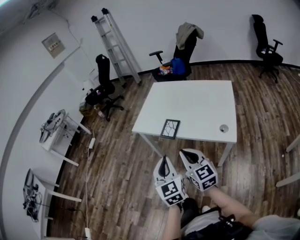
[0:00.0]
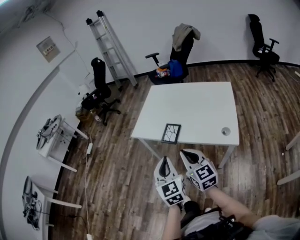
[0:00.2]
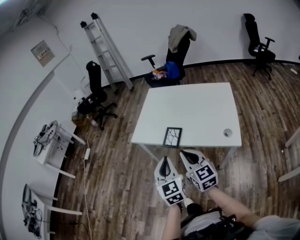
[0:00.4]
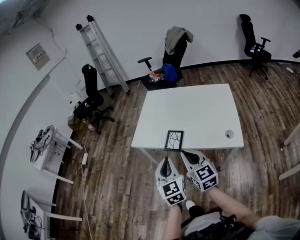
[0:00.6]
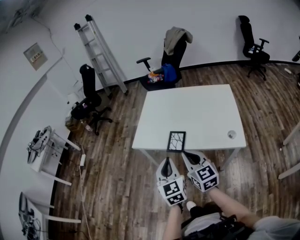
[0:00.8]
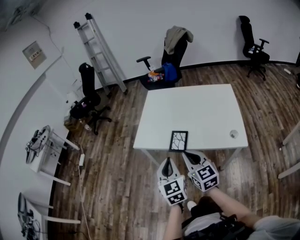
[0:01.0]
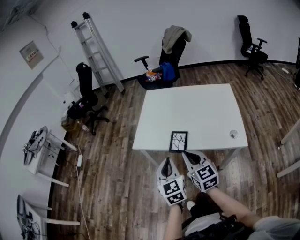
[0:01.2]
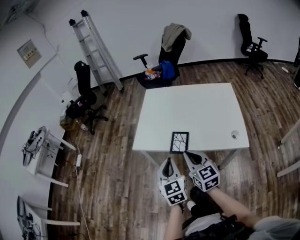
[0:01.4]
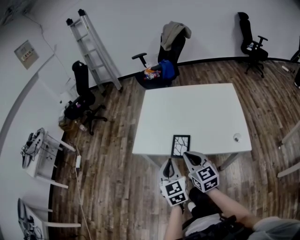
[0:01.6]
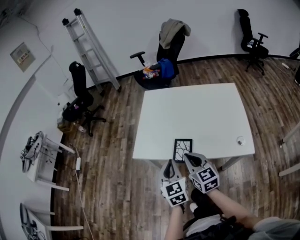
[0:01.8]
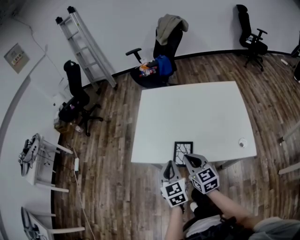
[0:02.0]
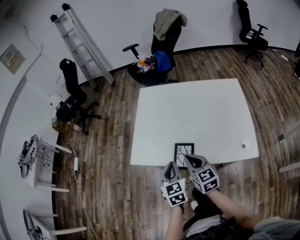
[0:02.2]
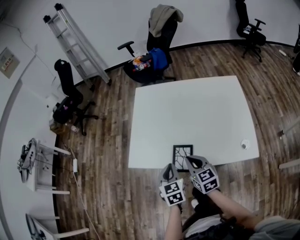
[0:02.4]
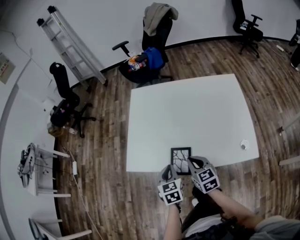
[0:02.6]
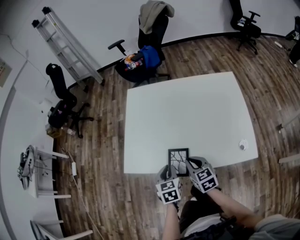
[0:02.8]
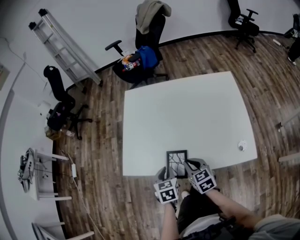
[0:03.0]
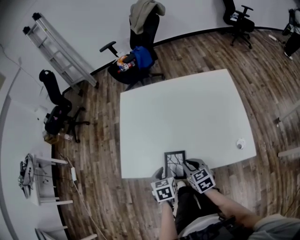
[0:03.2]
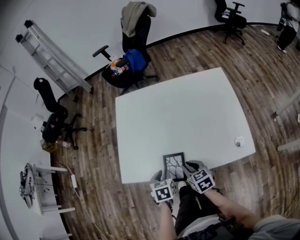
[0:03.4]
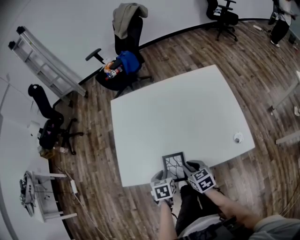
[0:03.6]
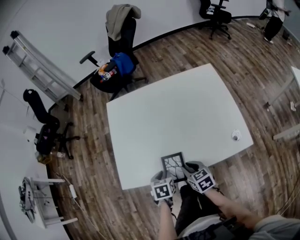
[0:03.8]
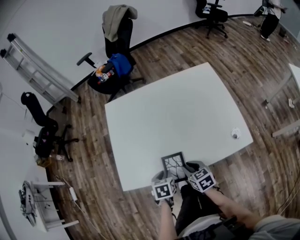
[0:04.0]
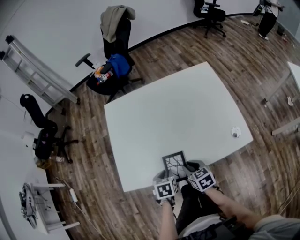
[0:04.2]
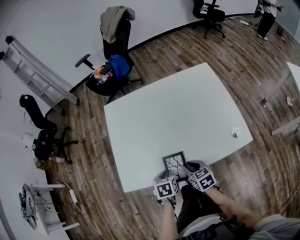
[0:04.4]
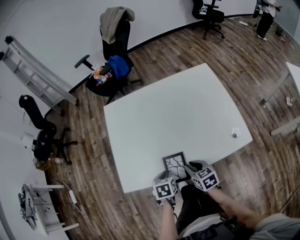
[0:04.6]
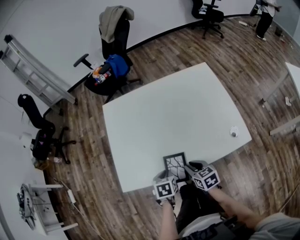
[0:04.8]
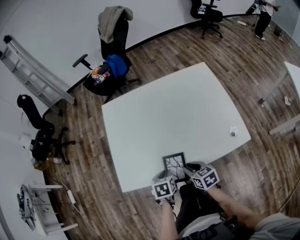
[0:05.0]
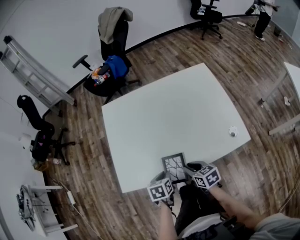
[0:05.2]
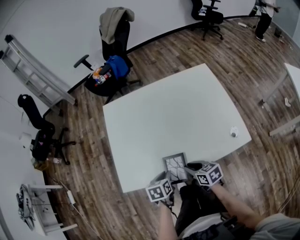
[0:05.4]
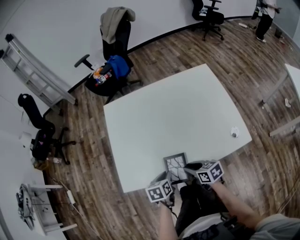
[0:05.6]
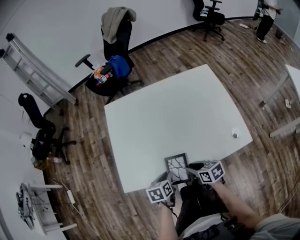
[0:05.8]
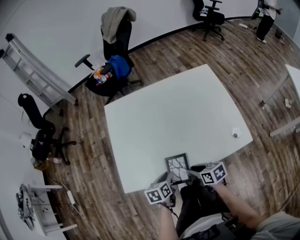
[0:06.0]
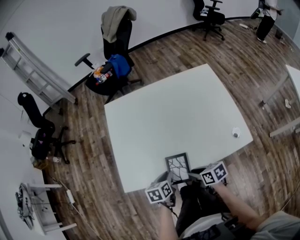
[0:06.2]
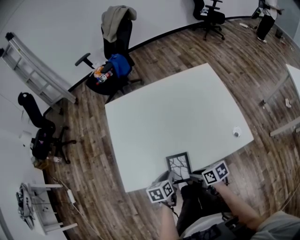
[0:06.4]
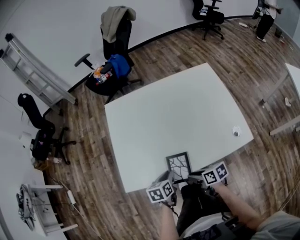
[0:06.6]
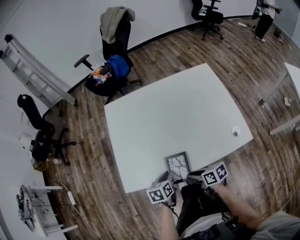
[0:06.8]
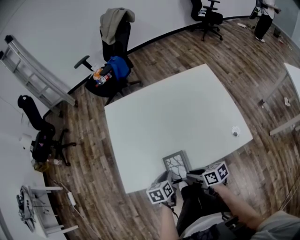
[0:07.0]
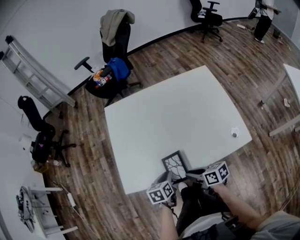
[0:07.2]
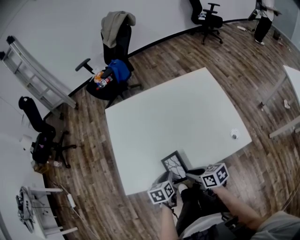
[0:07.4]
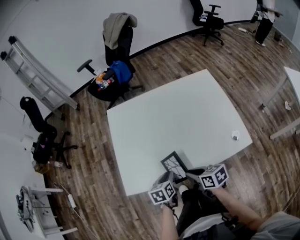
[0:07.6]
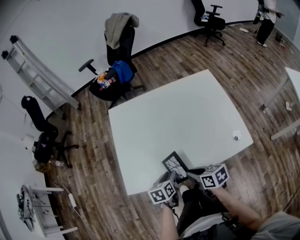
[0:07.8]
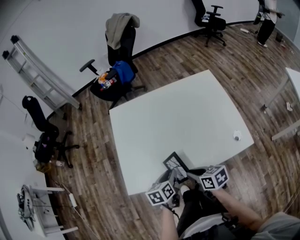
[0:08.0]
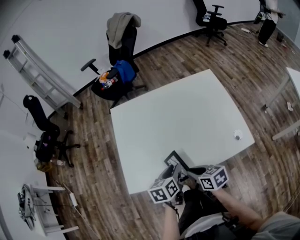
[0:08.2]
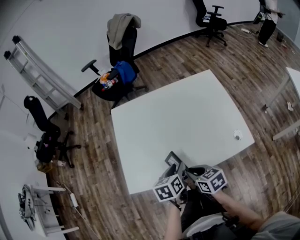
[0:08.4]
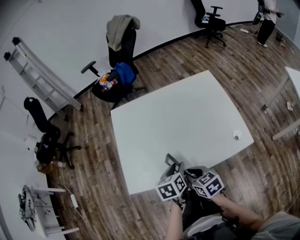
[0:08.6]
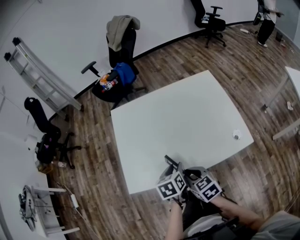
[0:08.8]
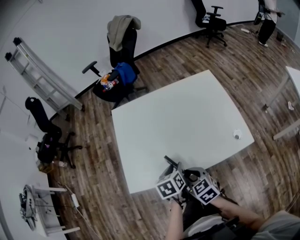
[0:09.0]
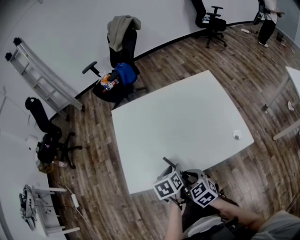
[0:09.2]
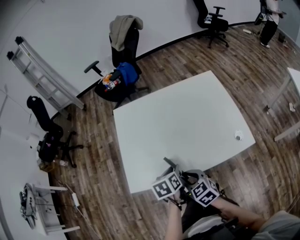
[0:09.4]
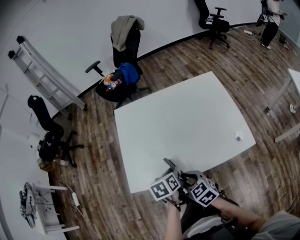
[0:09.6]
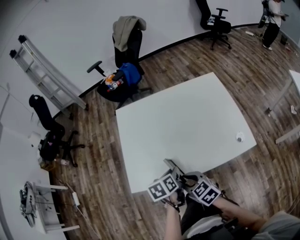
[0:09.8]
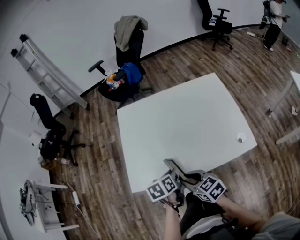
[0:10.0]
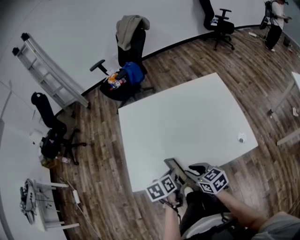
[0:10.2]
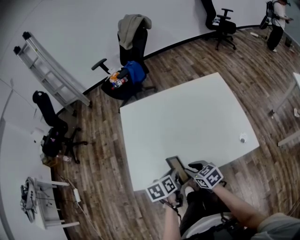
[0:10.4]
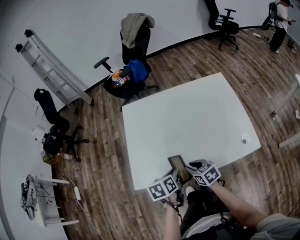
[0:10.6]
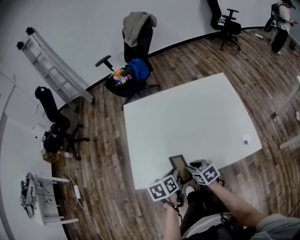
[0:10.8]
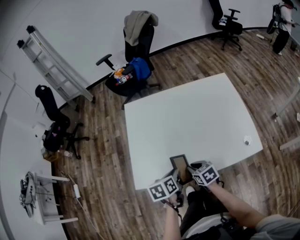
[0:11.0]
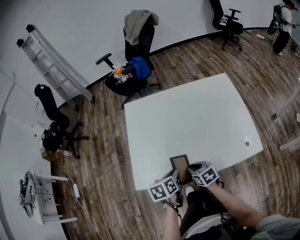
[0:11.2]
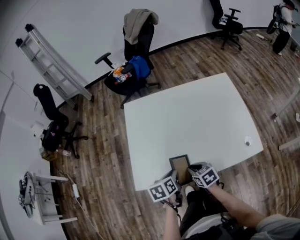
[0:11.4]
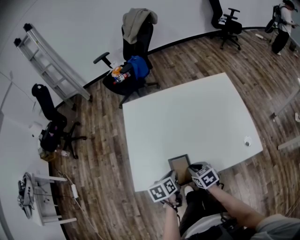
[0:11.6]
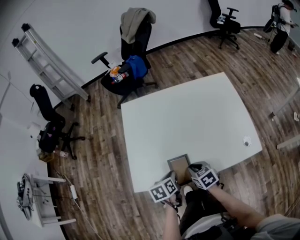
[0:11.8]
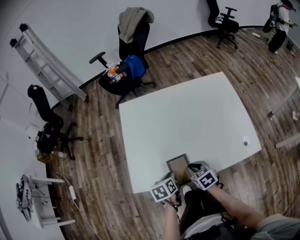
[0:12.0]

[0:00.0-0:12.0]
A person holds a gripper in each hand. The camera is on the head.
0:00.0 to 0:01.6: Both grippers move forward, some 20 cm.
0:01.6 to 0:03.0: Both grippers travel together downward and forward, about 20 cm. The right gripper rotates about 20 degrees; the left gripper angles its fingers downward, by about 30 degrees.
0:03.0 to 0:04.4: Both grippers move downward, approximately 5 cm. The left gripper turns by some 20 degrees.
0:04.4 to 0:06.0: The left gripper swivels approximately 20 degrees; the right gripper rotates approximately 20 degrees.
0:06.0 to 0:07.6: The right gripper heads upward, covering some 5 cm.
0:07.6 to 0:09.0: The left gripper is displaced upward by about 10 cm; the right gripper shifts by some 5 cm, and turns by roughly 30 degrees.
0:09.0 to 0:10.4: The right gripper changes place by approximately 5 cm.
0:10.4 to 0:12.0: The grippers both shift downward by approximately 5 cm.

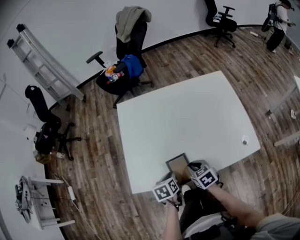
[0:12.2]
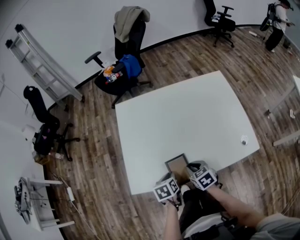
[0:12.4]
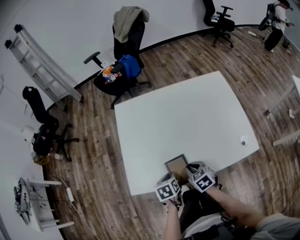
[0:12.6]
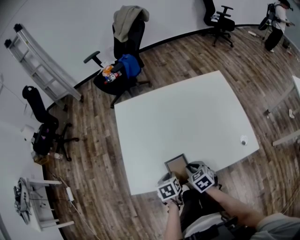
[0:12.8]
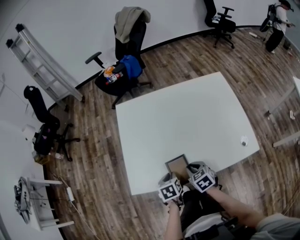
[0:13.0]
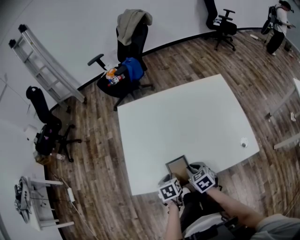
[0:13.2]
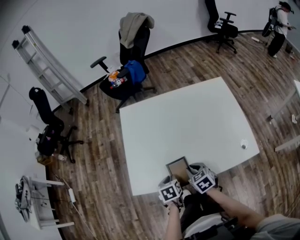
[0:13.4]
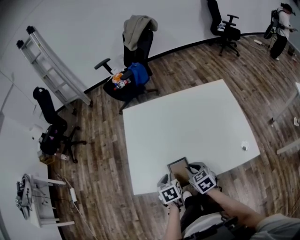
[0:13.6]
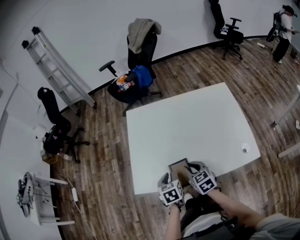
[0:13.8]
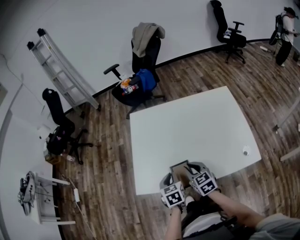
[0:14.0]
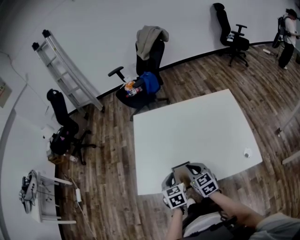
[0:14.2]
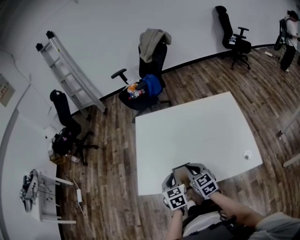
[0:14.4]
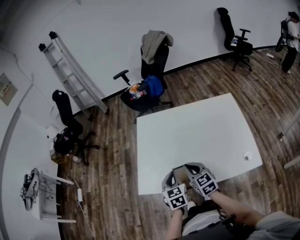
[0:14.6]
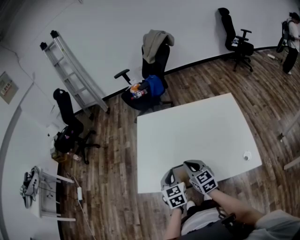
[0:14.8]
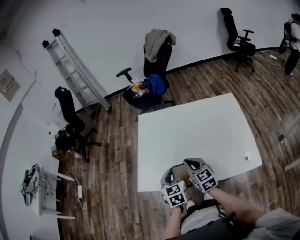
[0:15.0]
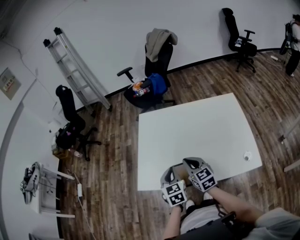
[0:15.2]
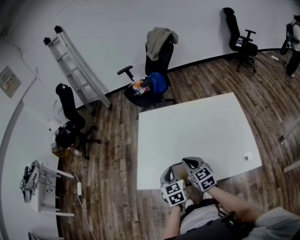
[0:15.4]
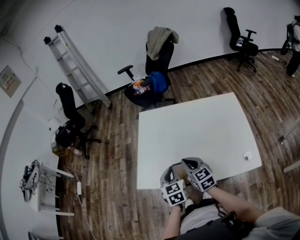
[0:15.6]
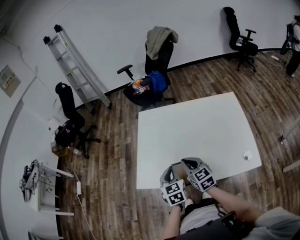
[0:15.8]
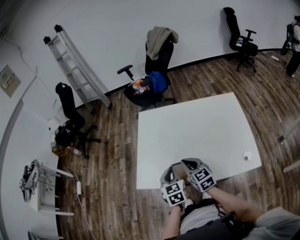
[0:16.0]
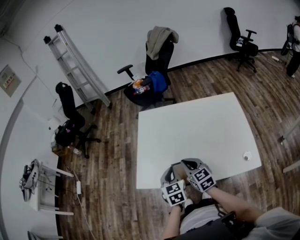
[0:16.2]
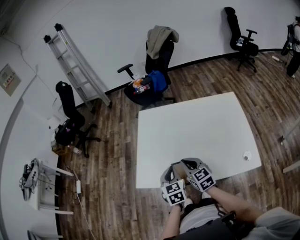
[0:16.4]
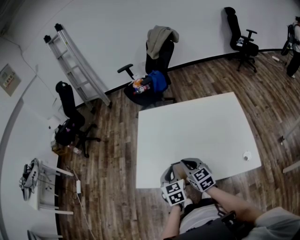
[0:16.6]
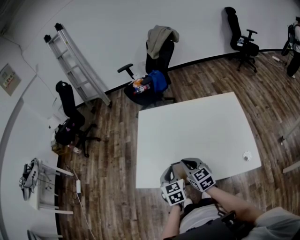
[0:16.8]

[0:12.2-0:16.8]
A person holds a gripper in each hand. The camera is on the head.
0:12.2 to 0:13.8: Both grippers move upward, about 5 cm.
0:13.8 to 0:15.2: The two grippers go some 10 cm upward. The left gripper turns by about 20 degrees.
0:15.2 to 0:16.8: The grippers make only small movements.

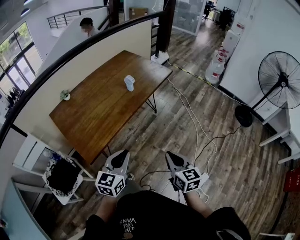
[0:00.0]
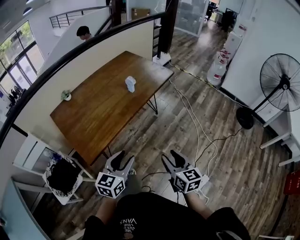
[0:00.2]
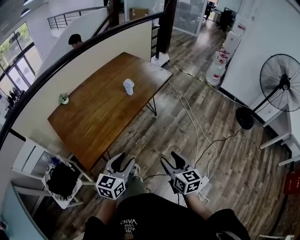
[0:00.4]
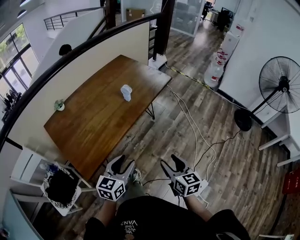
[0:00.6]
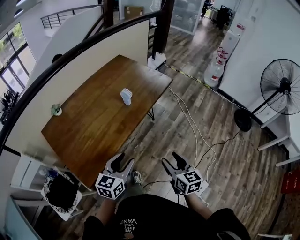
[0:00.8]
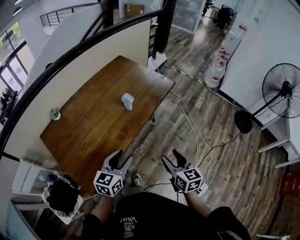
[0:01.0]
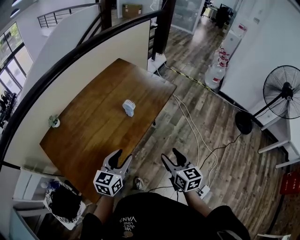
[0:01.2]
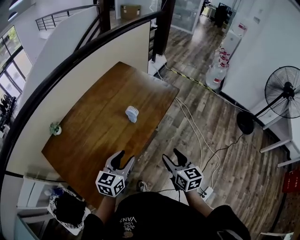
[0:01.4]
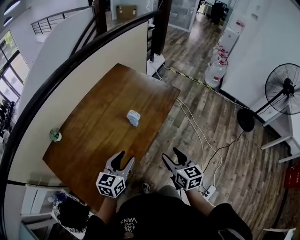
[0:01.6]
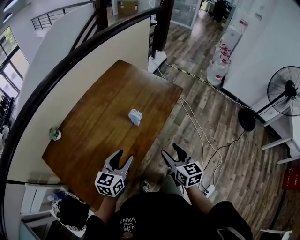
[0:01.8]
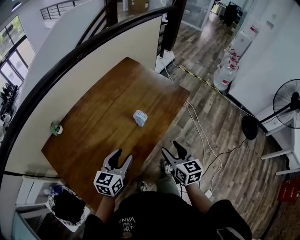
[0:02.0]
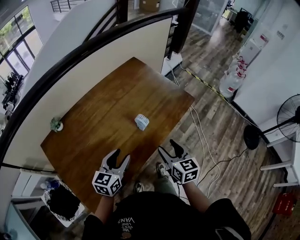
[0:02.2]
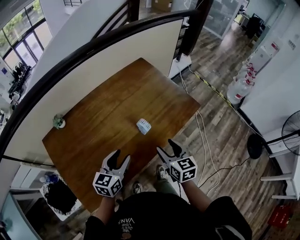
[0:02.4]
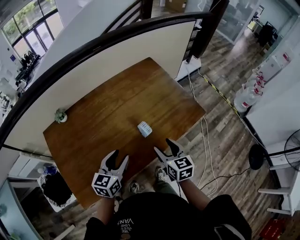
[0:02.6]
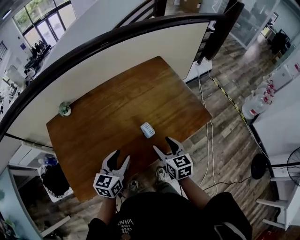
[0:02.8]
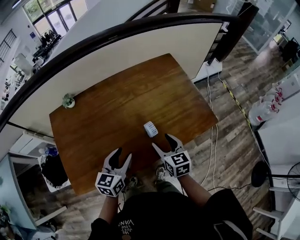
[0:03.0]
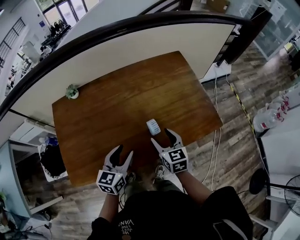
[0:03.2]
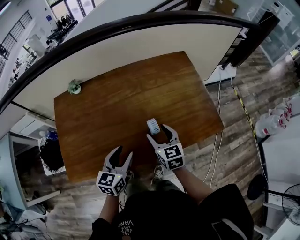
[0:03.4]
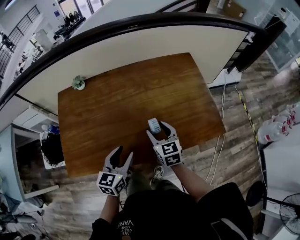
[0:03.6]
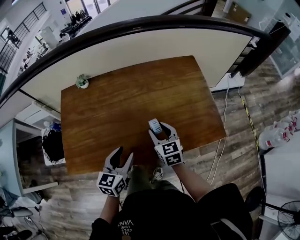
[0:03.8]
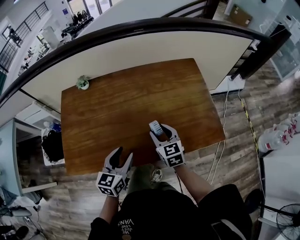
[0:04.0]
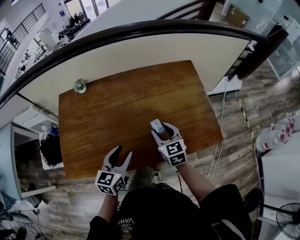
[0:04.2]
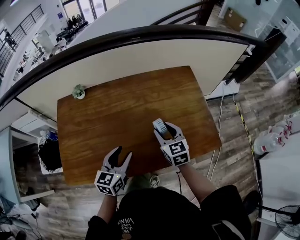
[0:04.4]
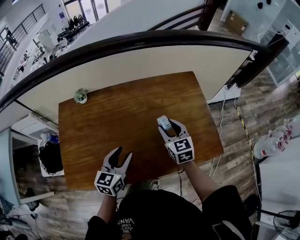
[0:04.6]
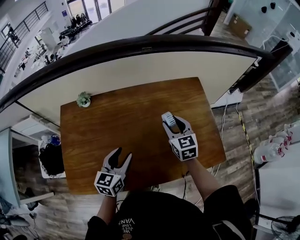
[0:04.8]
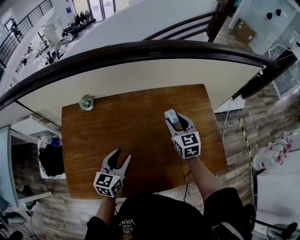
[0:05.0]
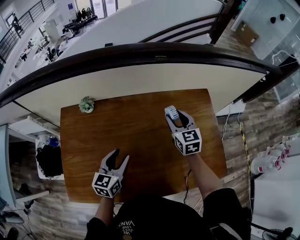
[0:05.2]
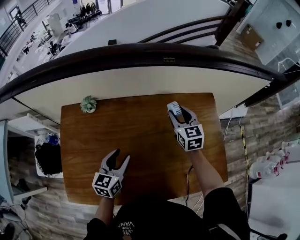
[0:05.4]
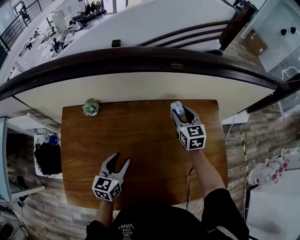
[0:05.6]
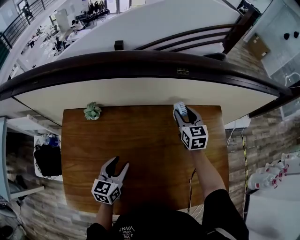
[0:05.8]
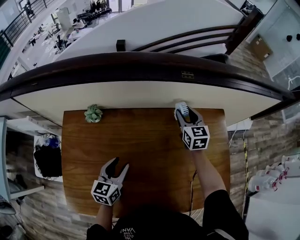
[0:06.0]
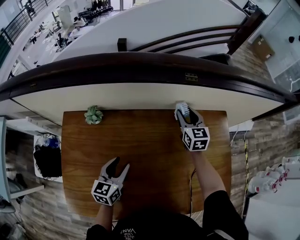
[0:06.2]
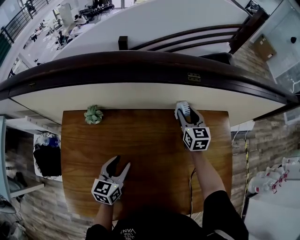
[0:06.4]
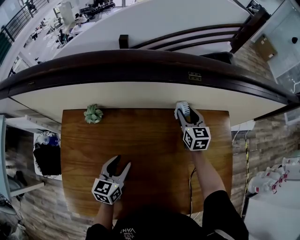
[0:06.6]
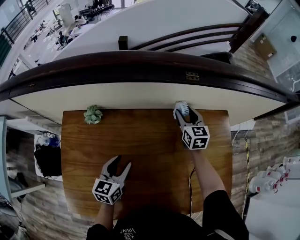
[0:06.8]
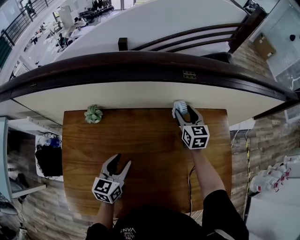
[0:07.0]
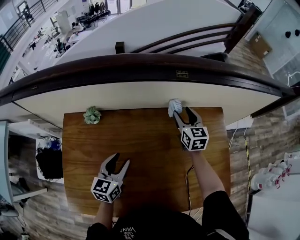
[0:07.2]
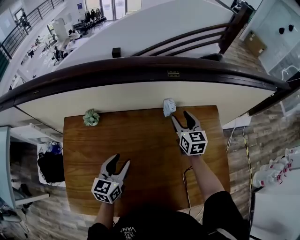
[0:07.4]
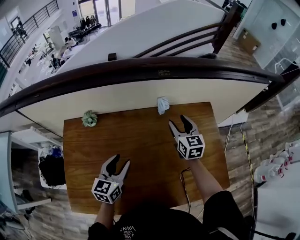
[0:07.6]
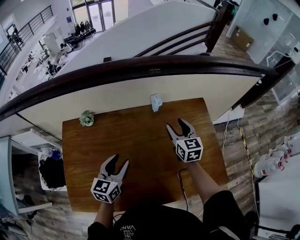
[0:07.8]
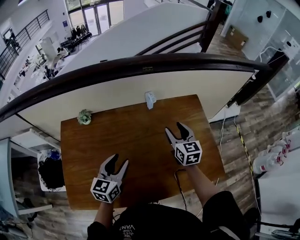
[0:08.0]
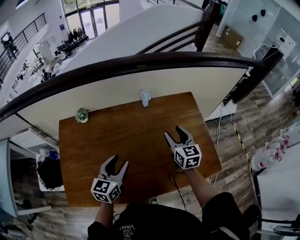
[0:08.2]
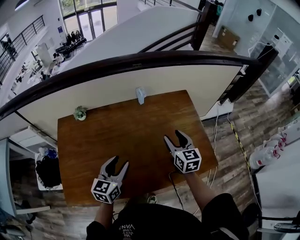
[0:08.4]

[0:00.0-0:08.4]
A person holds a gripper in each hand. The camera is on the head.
0:00.0 to 0:01.4: Both grippers travel together forward, some 25 cm. The left gripper opens, while the right gripper opens.
0:01.4 to 0:02.8: The right gripper ends up roughly 25 cm from where it was, and changes its angle by some 30 degrees; the left gripper moves roughly 10 cm, and turns by some 30 degrees.
0:02.8 to 0:04.2: The right gripper goes approximately 10 cm forward, and rotates approximately 30 degrees.
0:04.2 to 0:05.6: The right gripper is displaced forward by approximately 30 cm. The left gripper goes about 20 cm forward and to the left.
0:05.6 to 0:07.0: The right gripper moves forward, about 5 cm, while the left gripper shifts by roughly 5 cm.
0:07.0 to 0:08.4: The right gripper travels backward and to the right by about 30 cm; the left gripper heads backward, to the right and upward, covering some 20 cm.
